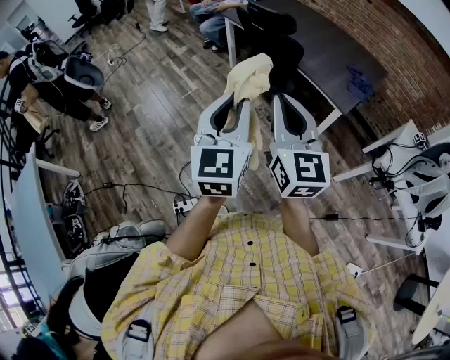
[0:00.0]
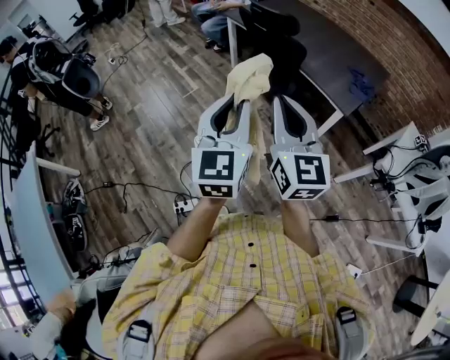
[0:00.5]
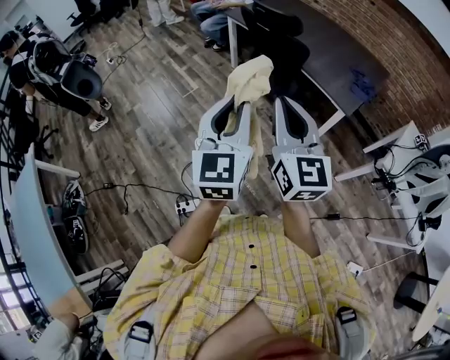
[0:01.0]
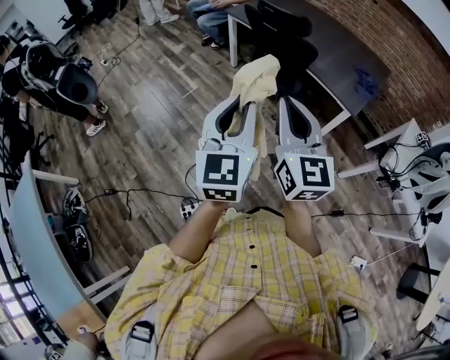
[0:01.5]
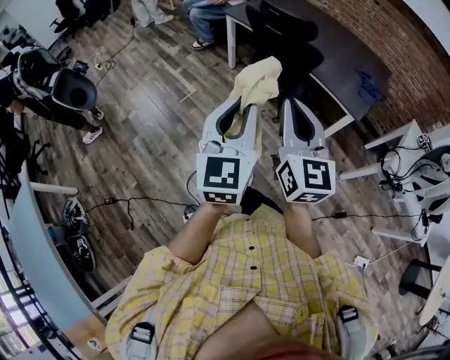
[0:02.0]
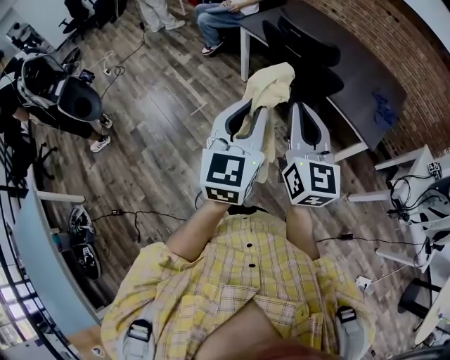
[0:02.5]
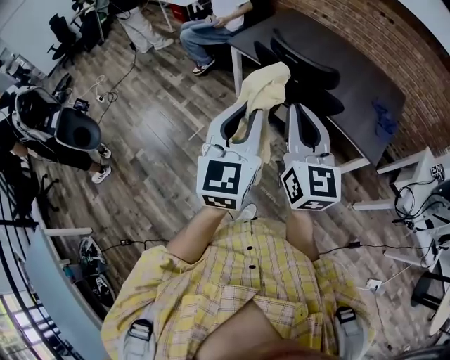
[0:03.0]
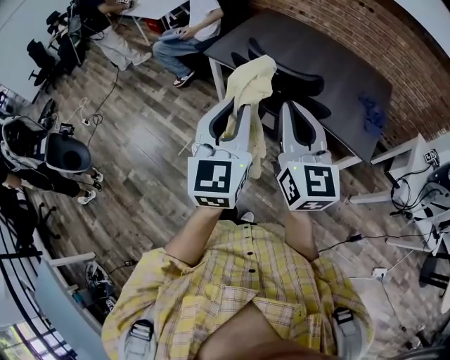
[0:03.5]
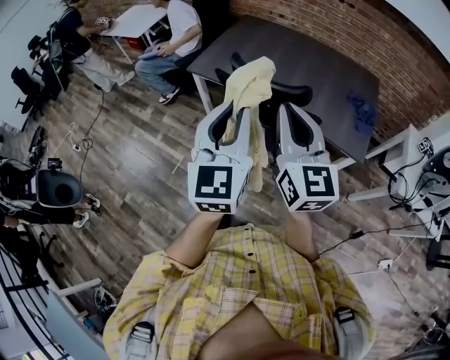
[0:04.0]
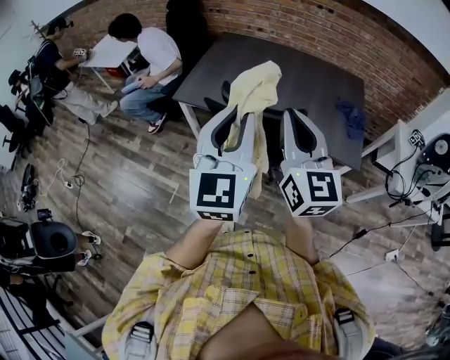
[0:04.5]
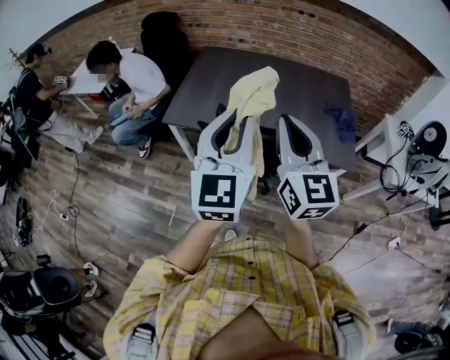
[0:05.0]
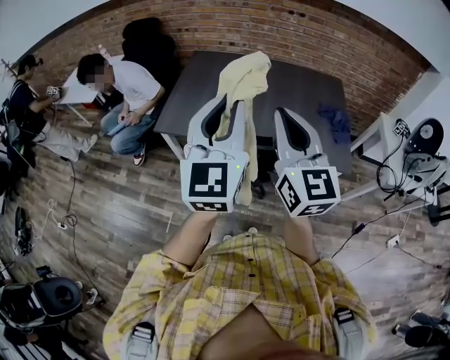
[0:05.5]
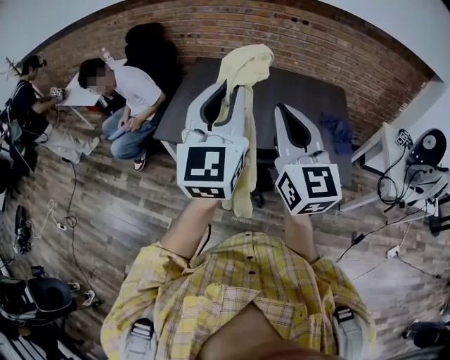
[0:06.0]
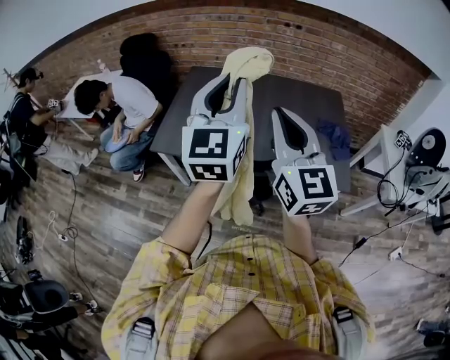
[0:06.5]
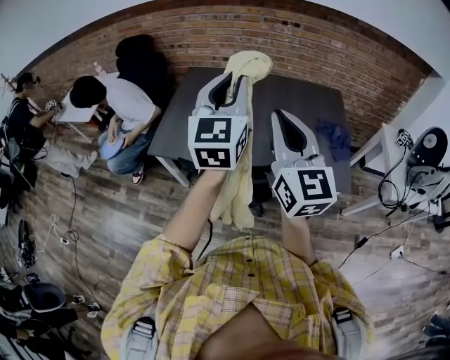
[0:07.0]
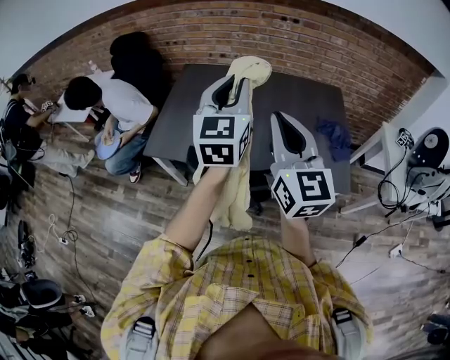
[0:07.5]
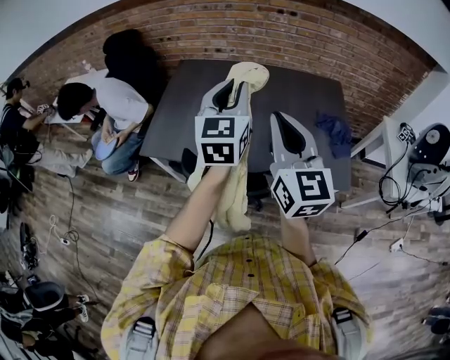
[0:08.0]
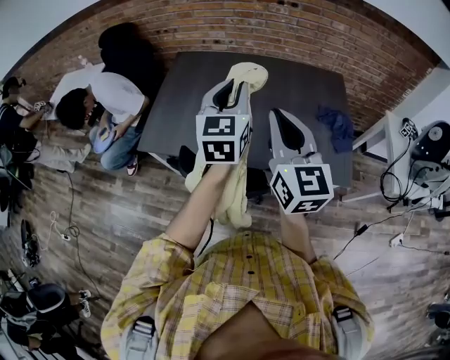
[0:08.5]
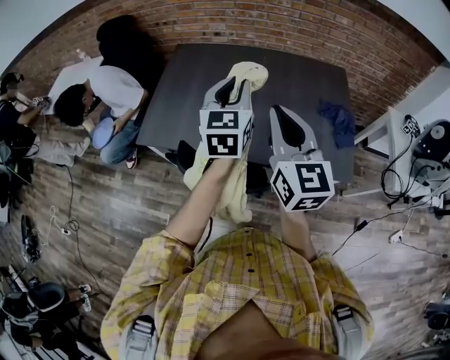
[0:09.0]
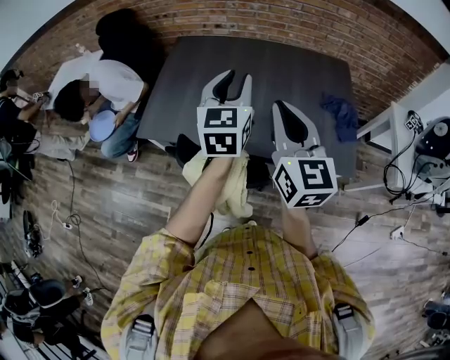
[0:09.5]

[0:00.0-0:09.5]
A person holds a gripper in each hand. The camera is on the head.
0:00.0 to 0:02.0: Both grippers move to the left and forward, approximately 15 cm.
0:02.0 to 0:04.0: Both grippers move forward, some 40 cm.
0:04.0 to 0:05.5: Both grippers travel together forward, roughly 20 cm.
0:05.5 to 0:07.5: The left gripper is displaced forward by about 20 cm, while the right gripper moves forward and to the right, approximately 15 cm.
0:07.5 to 0:09.5: The left gripper travels downward by some 10 cm. Meanwhile the right gripper goes about 5 cm downward.

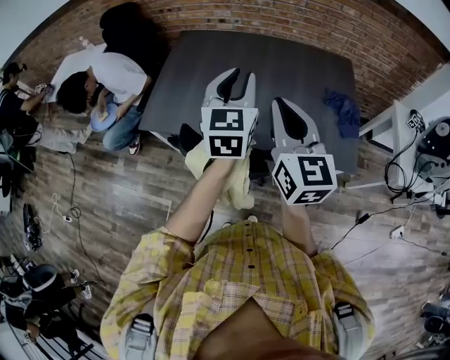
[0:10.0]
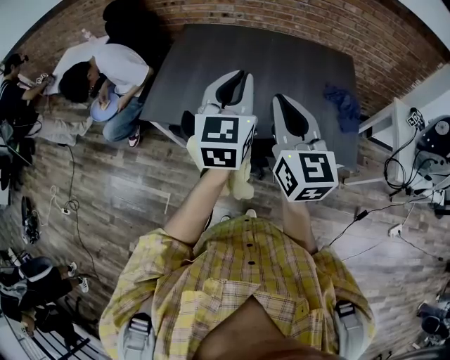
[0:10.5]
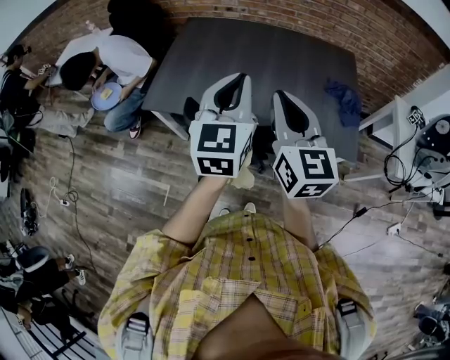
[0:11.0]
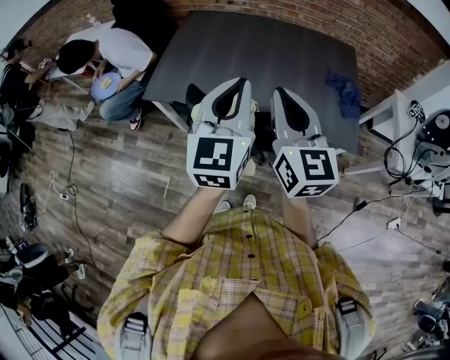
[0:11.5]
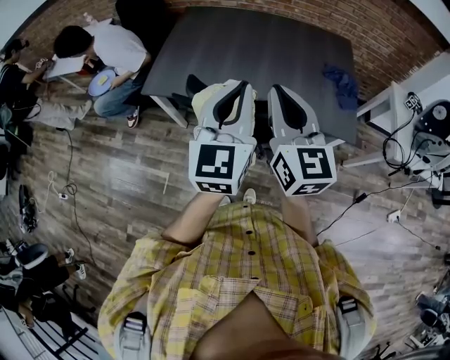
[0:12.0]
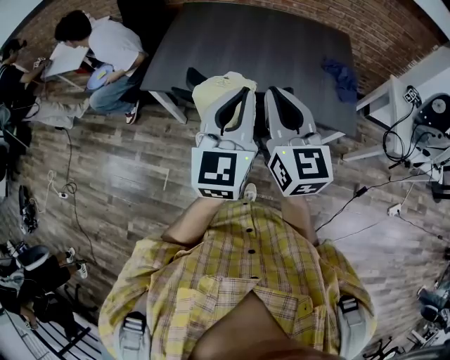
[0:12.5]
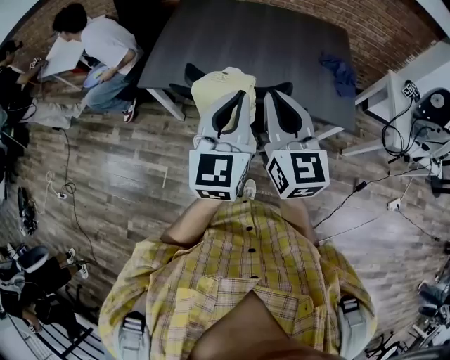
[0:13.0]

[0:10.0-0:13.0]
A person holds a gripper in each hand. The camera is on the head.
0:10.0 to 0:11.5: The right gripper shifts some 10 cm backward; the left gripper goes approximately 15 cm backward, and closes up.
0:11.5 to 0:13.0: The grippers both shift backward by roughly 5 cm.

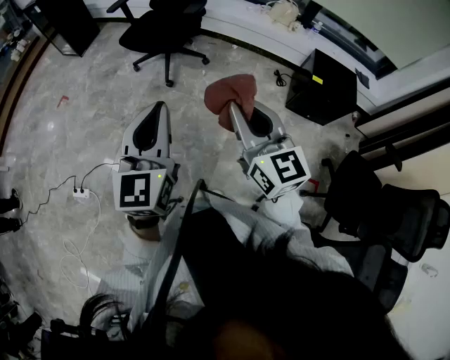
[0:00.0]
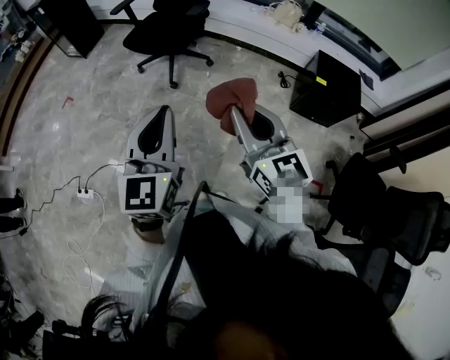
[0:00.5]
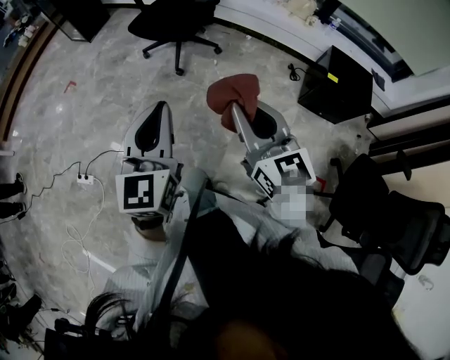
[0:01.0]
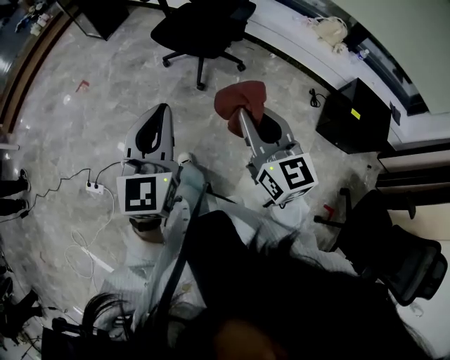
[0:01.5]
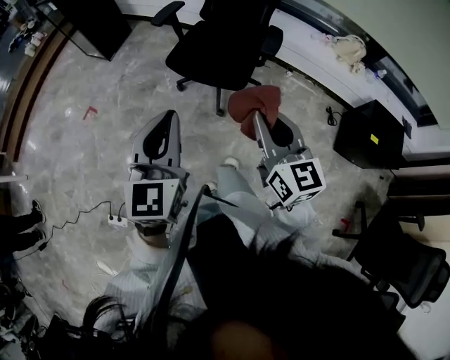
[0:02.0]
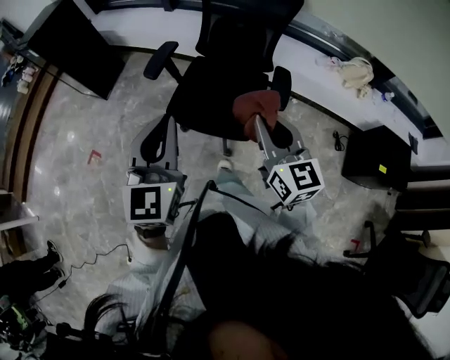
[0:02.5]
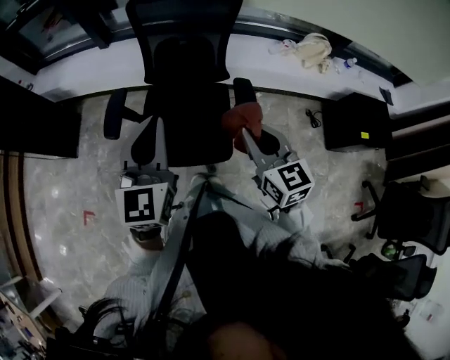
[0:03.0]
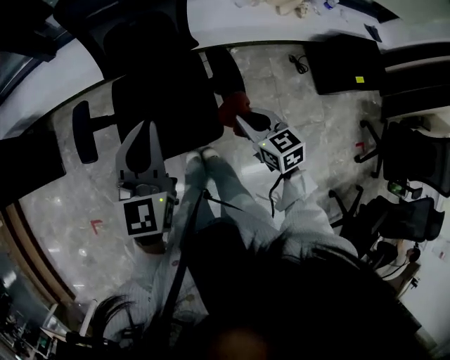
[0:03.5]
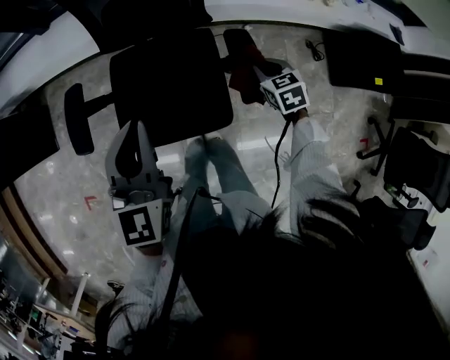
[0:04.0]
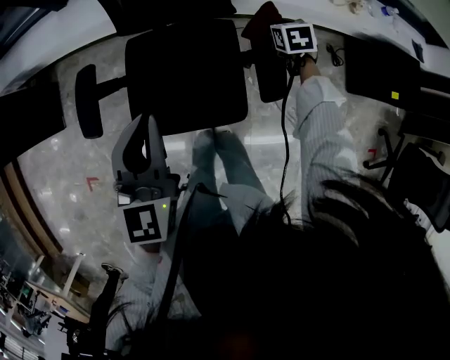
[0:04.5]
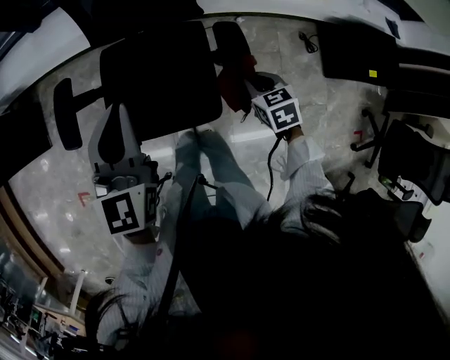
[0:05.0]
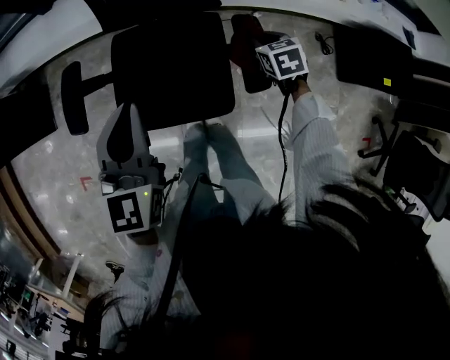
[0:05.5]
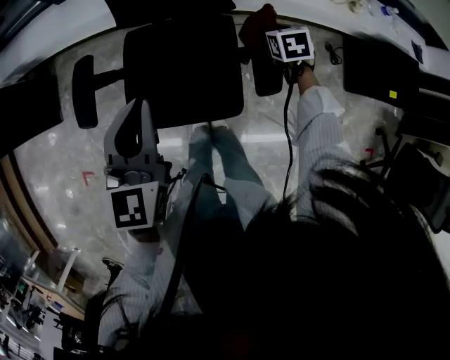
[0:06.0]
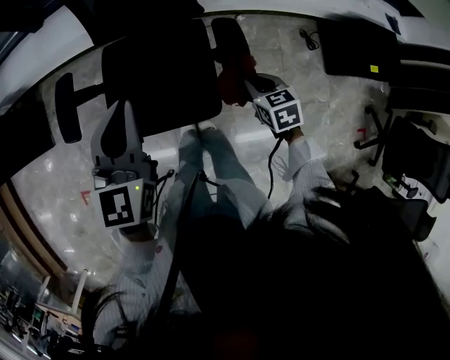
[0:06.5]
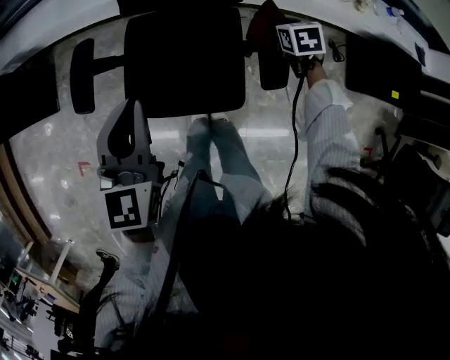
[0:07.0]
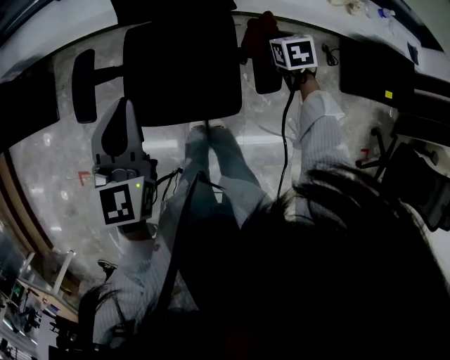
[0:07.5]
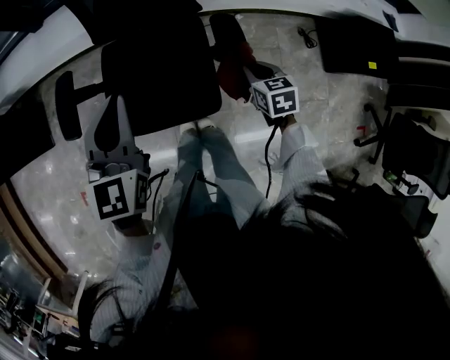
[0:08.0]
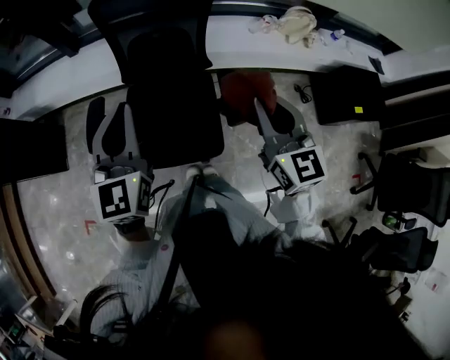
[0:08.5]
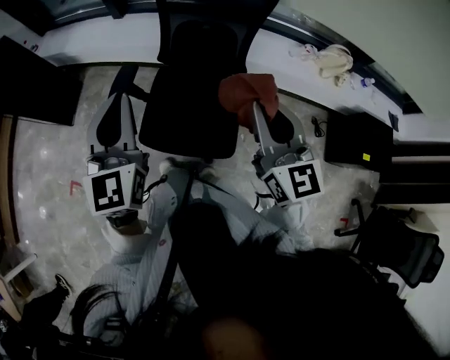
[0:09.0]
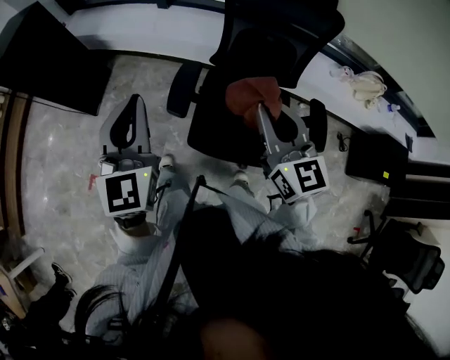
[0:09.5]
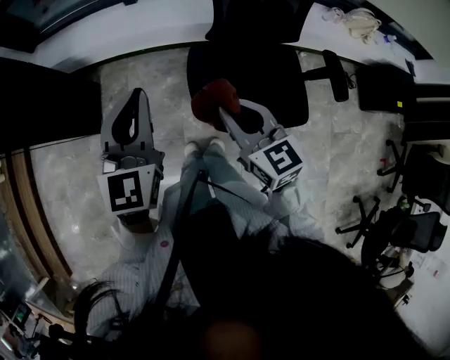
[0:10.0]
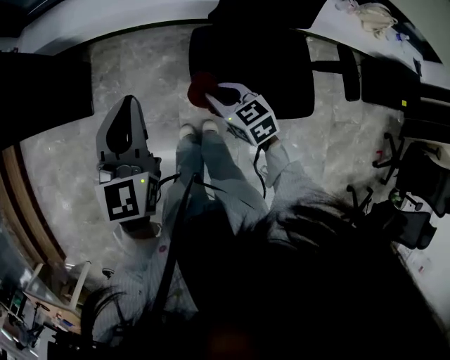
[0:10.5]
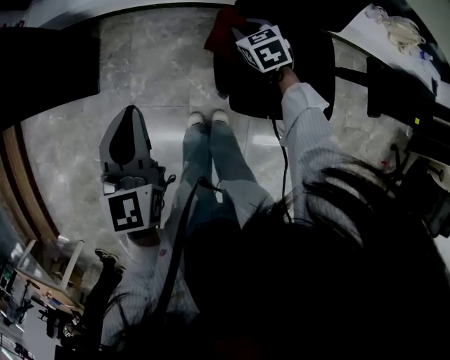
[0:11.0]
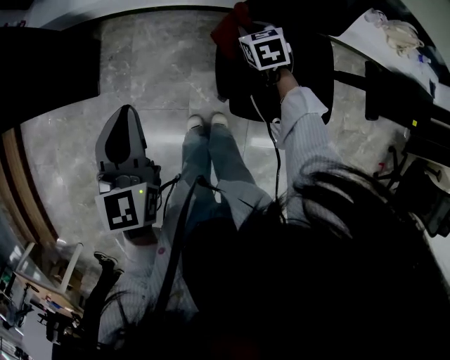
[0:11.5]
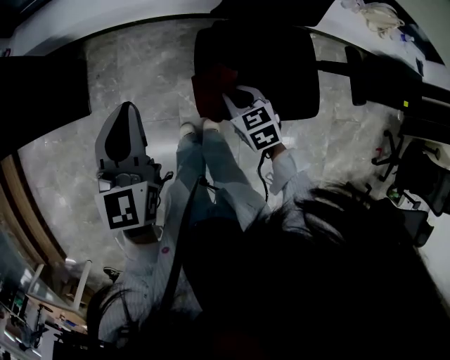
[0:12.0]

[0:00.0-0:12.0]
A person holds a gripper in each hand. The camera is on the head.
0:00.0 to 0:02.0: The pair of grippers is taken forward and to the left, some 50 cm.
0:02.0 to 0:04.0: The pair of grippers is taken forward, roughly 60 cm. The right gripper is displaced downward by some 35 cm, and tips its fingers downward by approximately 50 degrees; the left gripper rotates about 30 degrees.
0:04.0 to 0:06.0: The right gripper goes forward and backward, roughly 20 cm each way, reversing 2 times.
0:06.0 to 0:08.0: The right gripper moves forward and backward over about 20 cm, changing direction 2 times.
0:08.0 to 0:10.0: The two grippers travel together, to the left, about 50 cm. The right gripper is displaced upward by about 25 cm, and tips its fingers upward by about 30 degrees.
0:10.0 to 0:12.0: The left gripper is displaced downward and forward by approximately 10 cm. Meanwhile the right gripper shifts about 25 cm downward, and points its fingers roughly 30 degrees further downward.

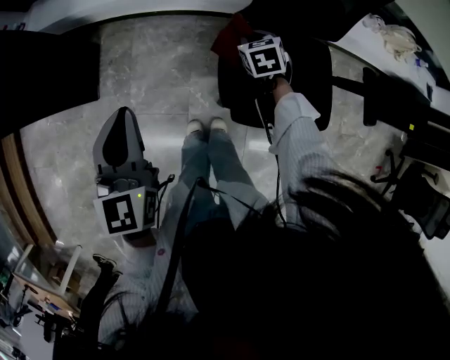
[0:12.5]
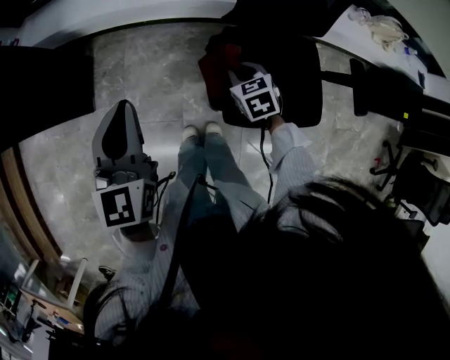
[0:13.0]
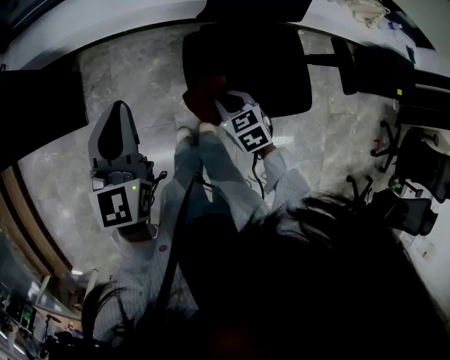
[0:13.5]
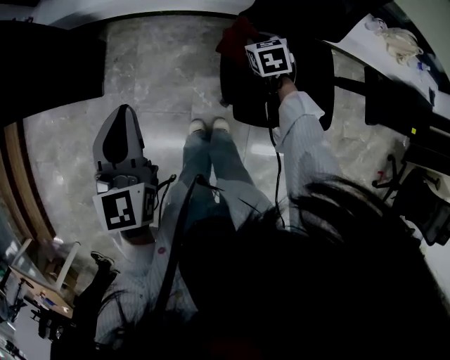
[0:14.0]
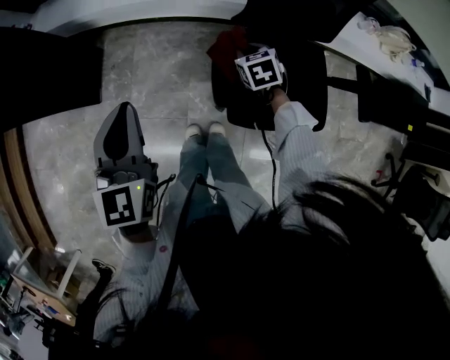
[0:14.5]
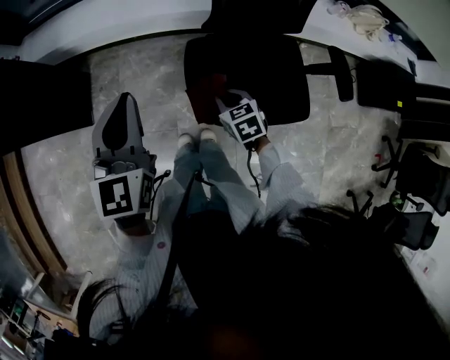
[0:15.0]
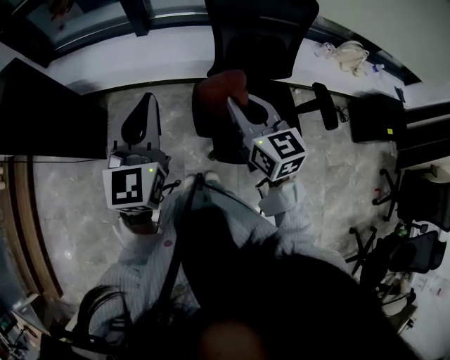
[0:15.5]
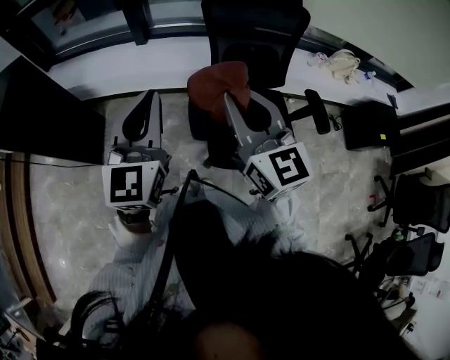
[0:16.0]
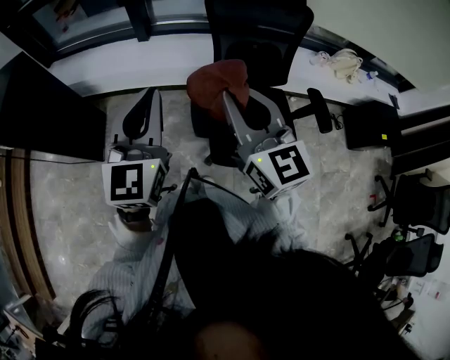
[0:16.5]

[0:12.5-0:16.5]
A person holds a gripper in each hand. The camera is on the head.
0:12.5 to 0:14.5: The right gripper reaches about 20 cm backward, then returns.
0:14.5 to 0:16.5: The left gripper goes about 20 cm upward and to the right, and changes its angle by roughly 20 degrees. The right gripper is displaced upward and backward by approximately 50 cm, and tilts its fingers some 60 degrees upward.
